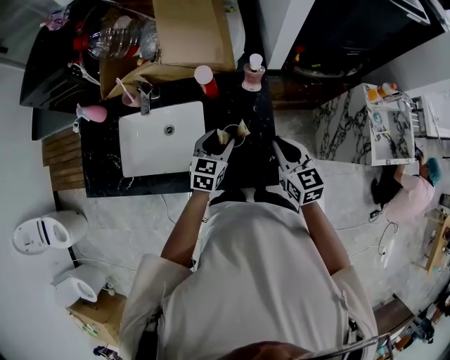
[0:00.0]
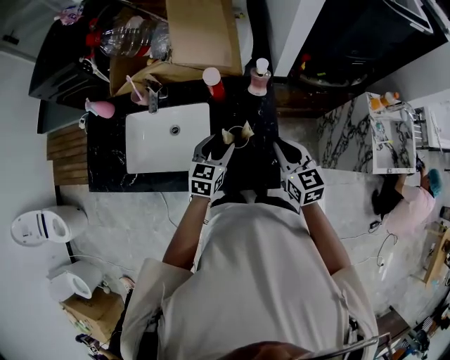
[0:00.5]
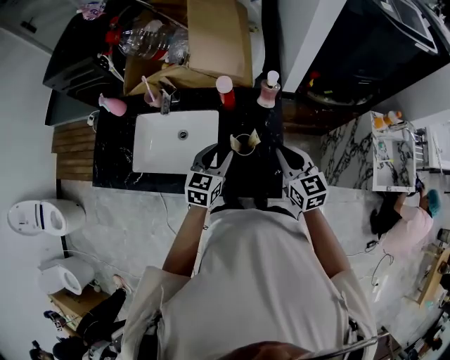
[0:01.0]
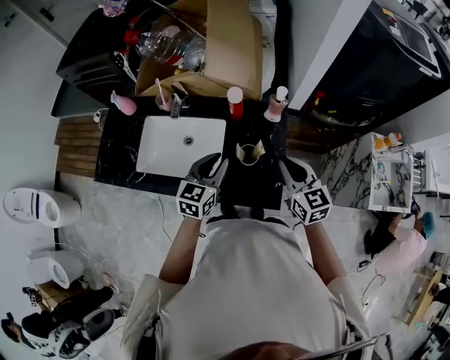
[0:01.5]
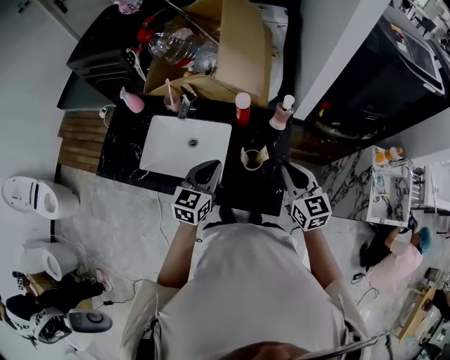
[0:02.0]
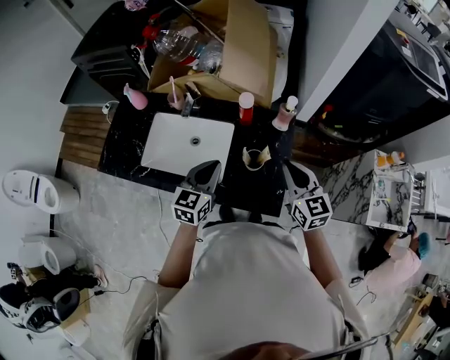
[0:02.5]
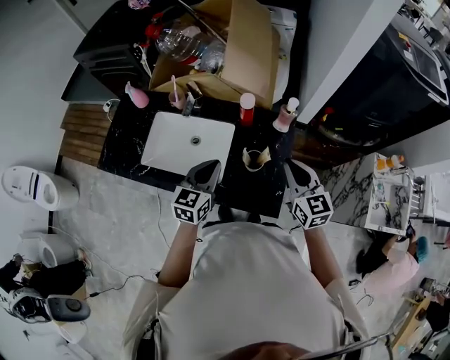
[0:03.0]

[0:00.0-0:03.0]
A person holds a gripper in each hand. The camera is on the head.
0:00.0 to 0:01.5: The right gripper moves upward, roughly 5 cm; the left gripper moves upward and to the left, roughly 15 cm, and closes.
0:01.5 to 0:03.0: The grippers stay close to where they were, moving slightly.

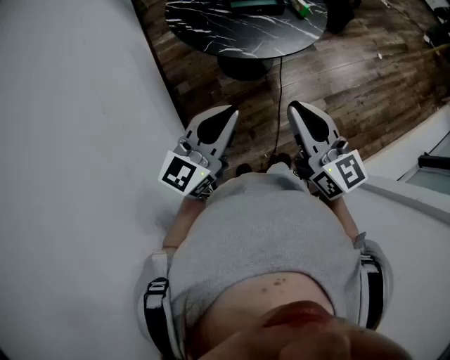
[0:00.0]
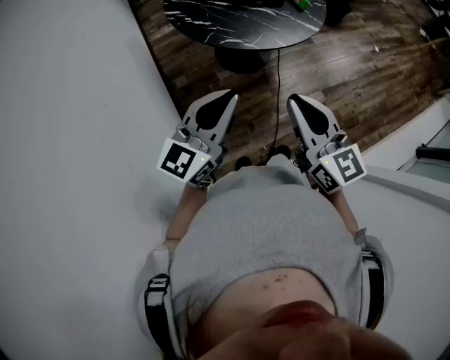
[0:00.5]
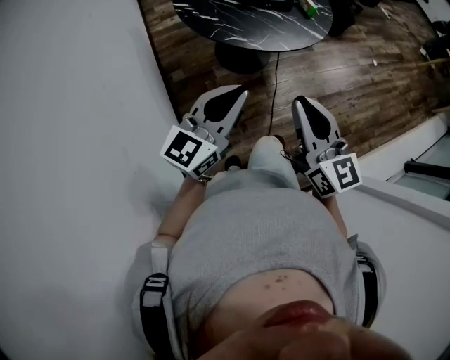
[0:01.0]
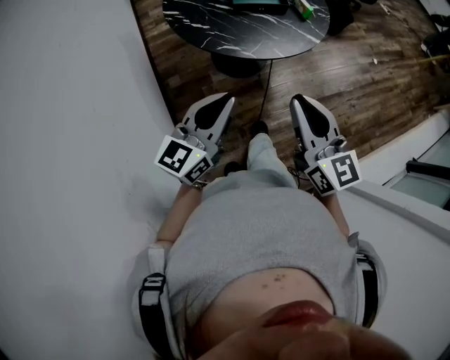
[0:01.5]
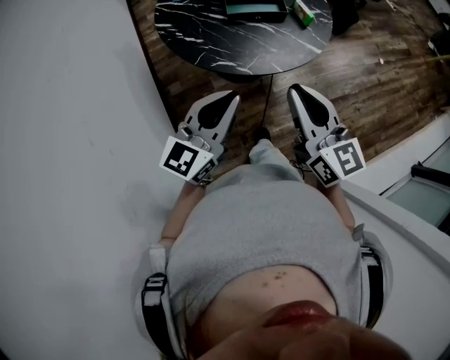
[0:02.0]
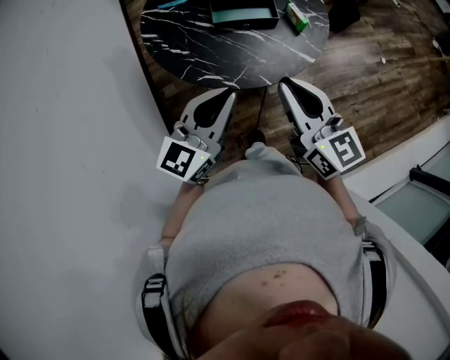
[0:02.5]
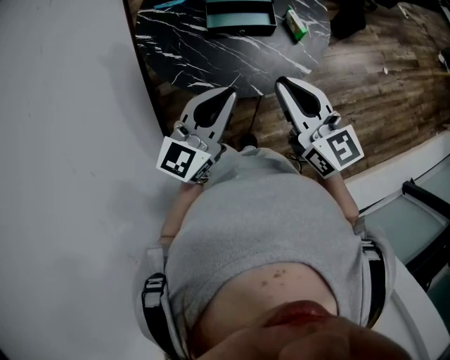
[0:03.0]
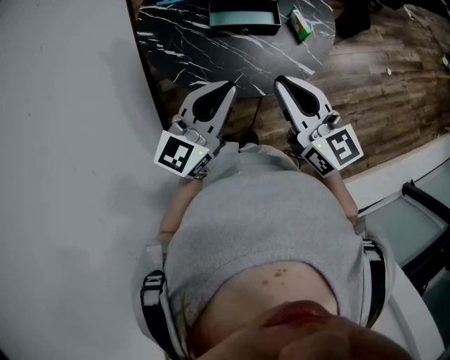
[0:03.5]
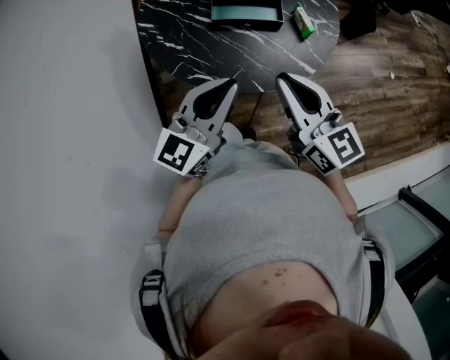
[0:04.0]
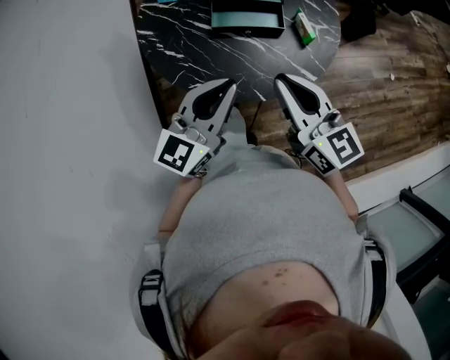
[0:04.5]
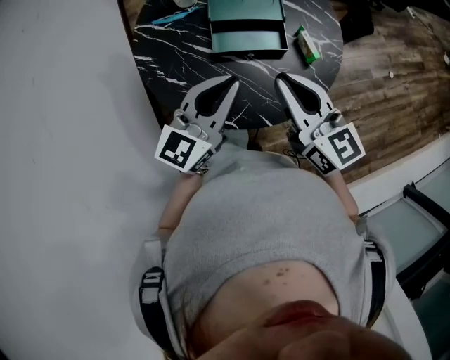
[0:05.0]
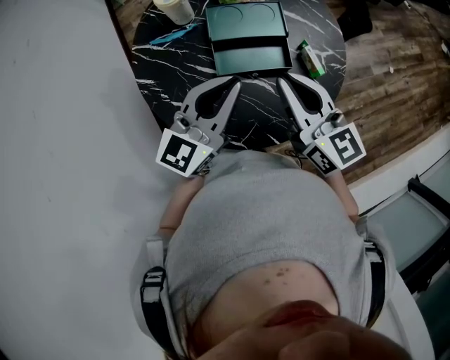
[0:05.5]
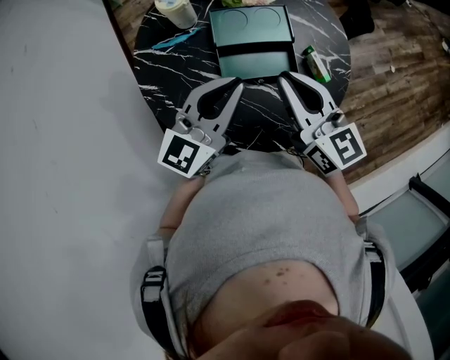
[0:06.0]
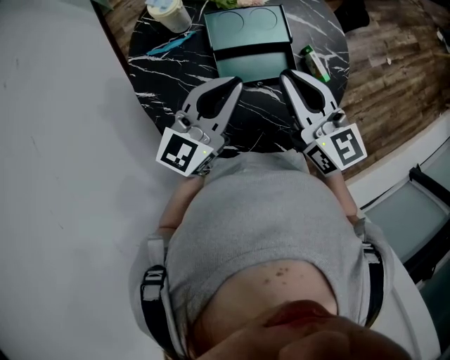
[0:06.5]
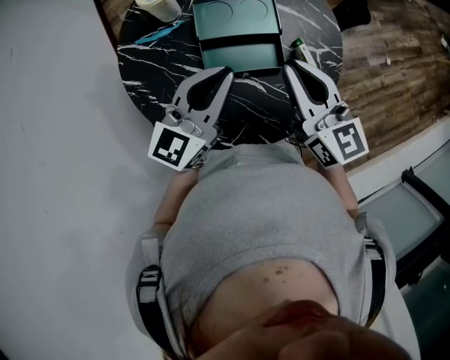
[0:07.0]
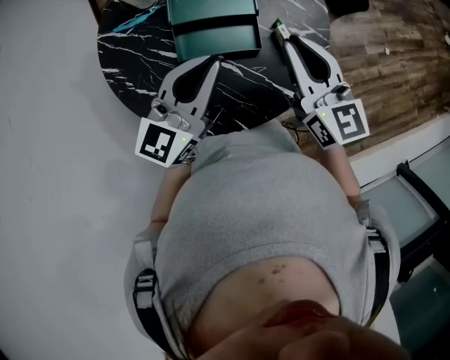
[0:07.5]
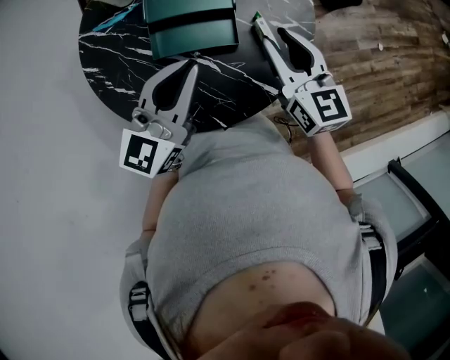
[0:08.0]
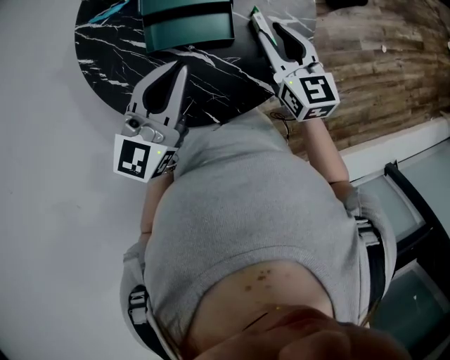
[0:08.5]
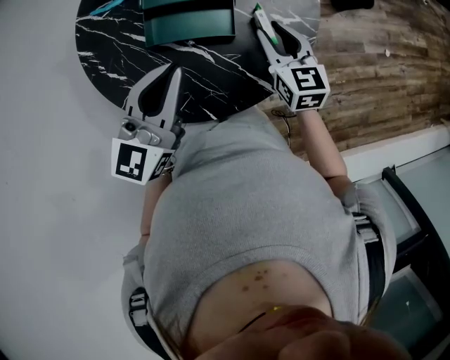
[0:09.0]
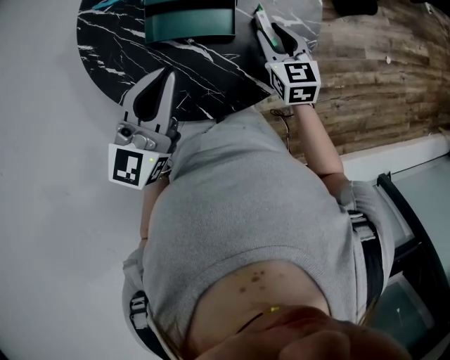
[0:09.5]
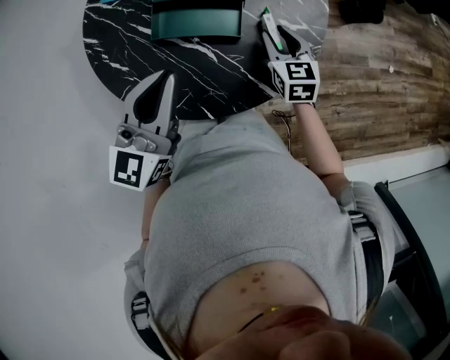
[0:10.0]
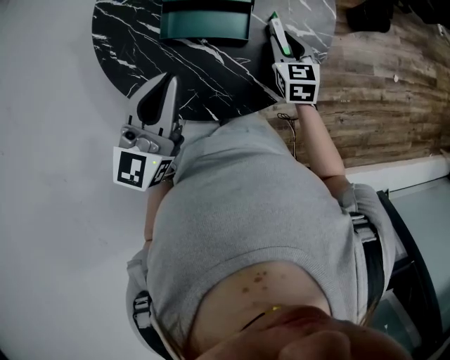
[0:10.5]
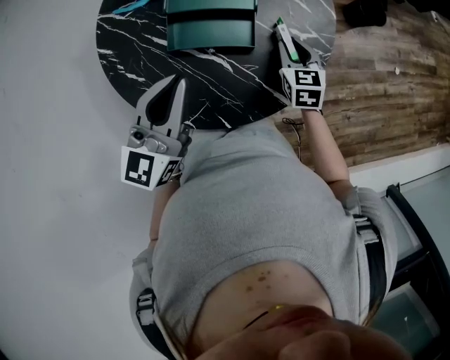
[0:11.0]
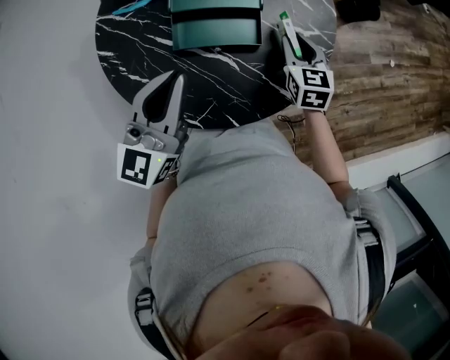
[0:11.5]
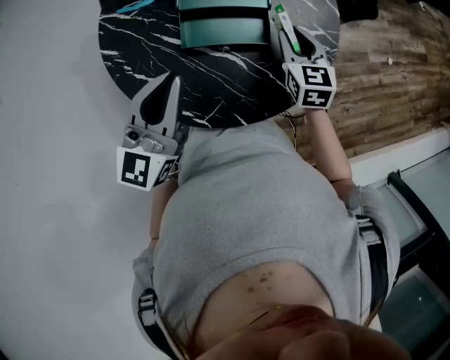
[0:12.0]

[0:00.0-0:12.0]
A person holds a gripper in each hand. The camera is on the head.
0:00.0 to 0:02.0: Both grippers move forward, about 15 cm.
0:02.0 to 0:04.0: Both grippers move forward and to the right, some 15 cm.
0:04.0 to 0:06.0: The two grippers go about 20 cm forward.
0:06.0 to 0:08.0: The right gripper shifts roughly 15 cm to the right and downward, and opens, while the left gripper shifts about 10 cm to the right.
0:08.0 to 0:10.0: The right gripper moves downward, about 15 cm.
0:10.0 to 0:12.0: The left gripper heads to the left, covering about 10 cm, while the right gripper moves upward, about 5 cm.

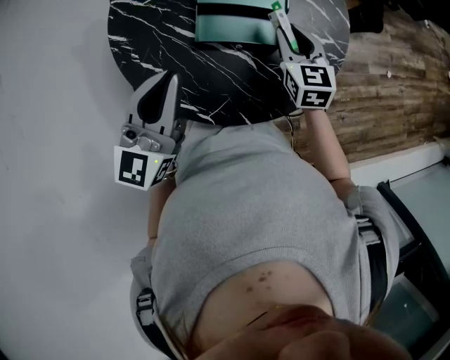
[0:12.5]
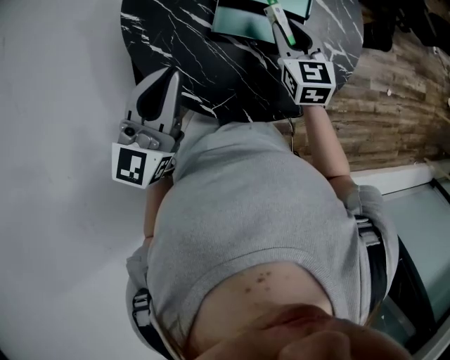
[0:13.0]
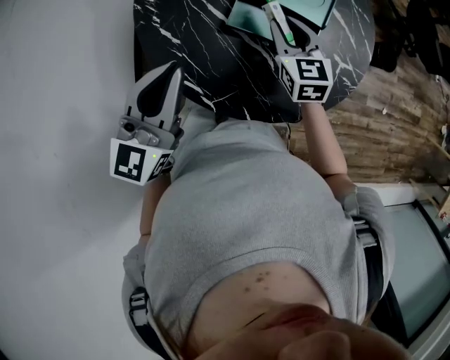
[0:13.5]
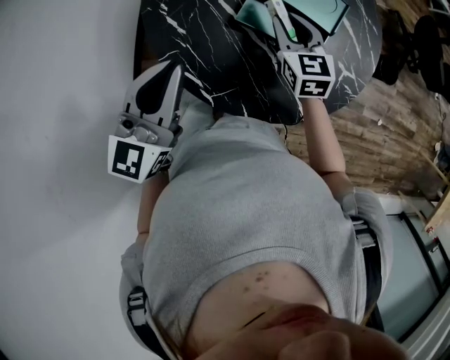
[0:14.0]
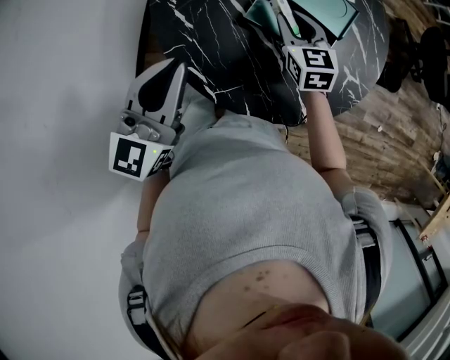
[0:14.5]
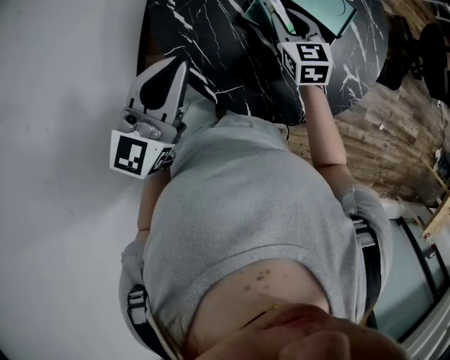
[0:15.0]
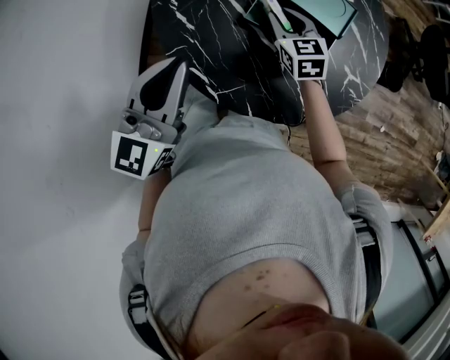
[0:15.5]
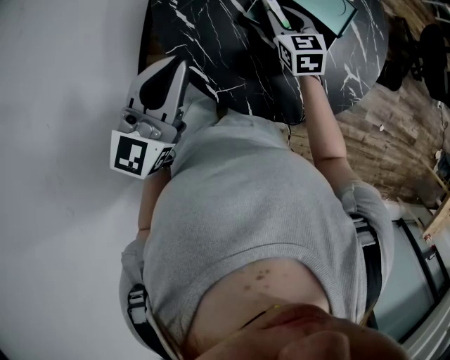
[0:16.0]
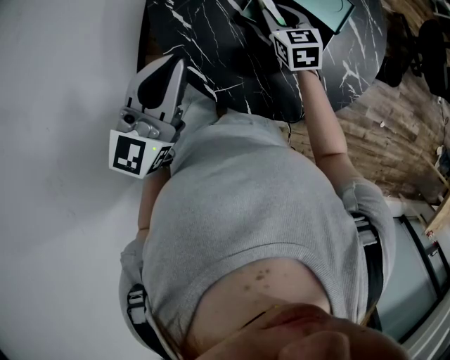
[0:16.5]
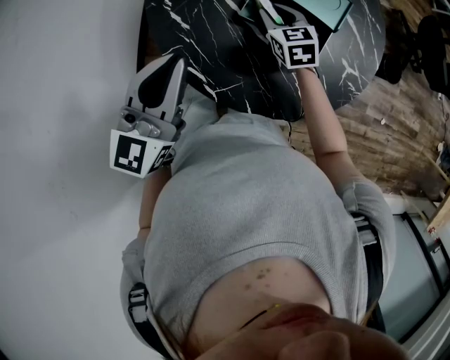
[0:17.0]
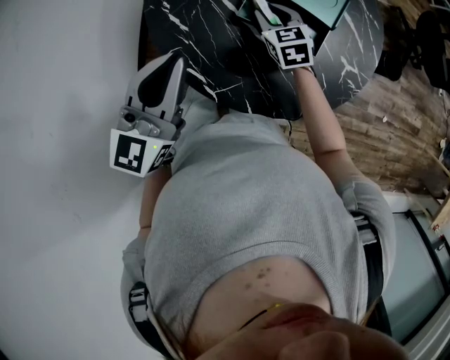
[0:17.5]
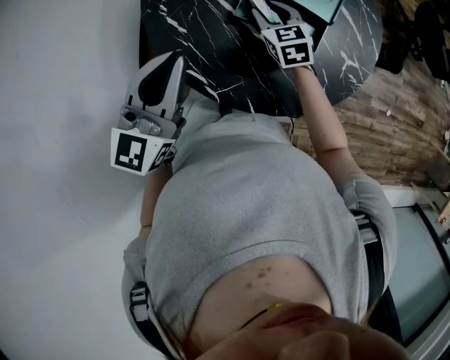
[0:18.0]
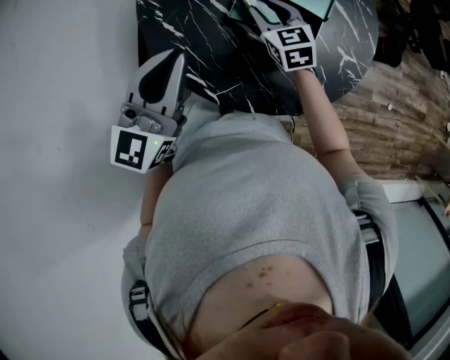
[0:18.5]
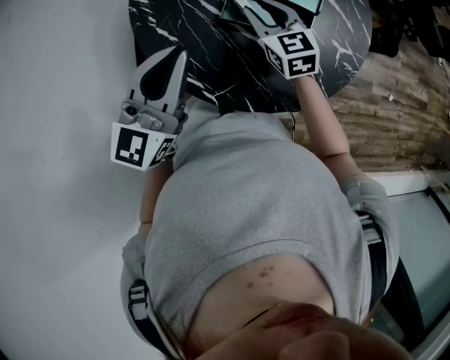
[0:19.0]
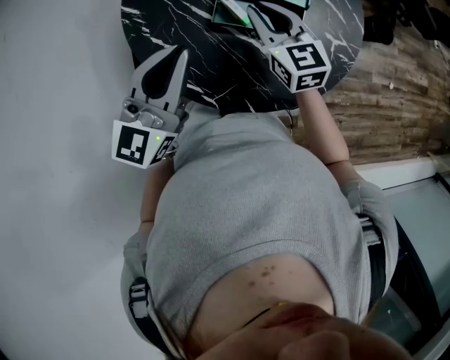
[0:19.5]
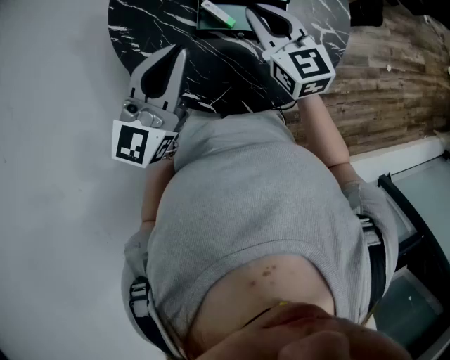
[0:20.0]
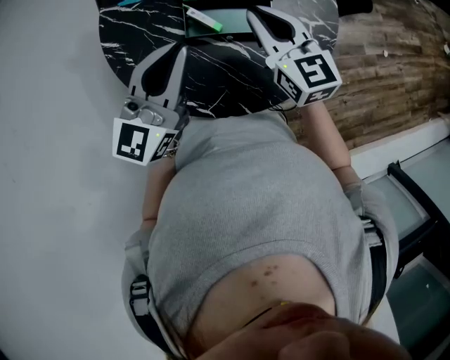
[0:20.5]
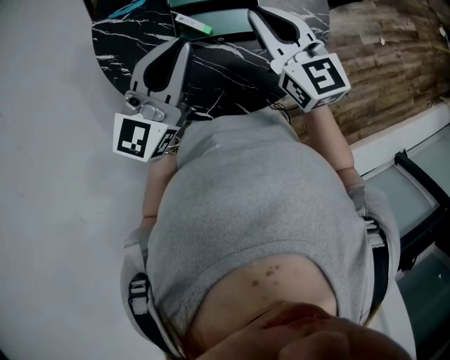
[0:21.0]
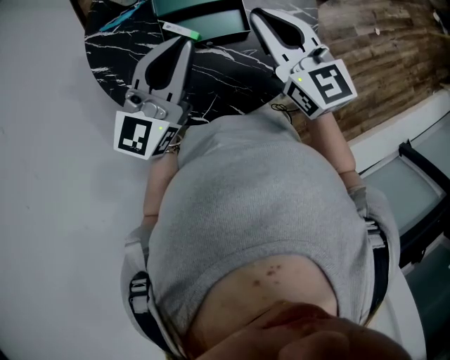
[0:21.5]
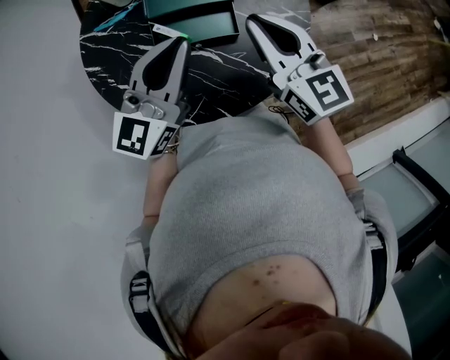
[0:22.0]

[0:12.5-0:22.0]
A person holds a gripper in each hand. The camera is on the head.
0:12.5 to 0:14.5: The left gripper travels to the left and backward by roughly 10 cm, and turns by roughly 20 degrees, while the right gripper travels to the left by some 15 cm, and rotates about 30 degrees.
0:14.5 to 0:18.0: The grippers stay close to where they were, moving slightly.
0:18.0 to 0:20.0: The left gripper moves to the right, approximately 5 cm. Meanwhile the right gripper travels upward and to the right by some 15 cm, swivels approximately 30 degrees, and closes.
0:20.0 to 0:22.0: The left gripper is displaced to the right by roughly 10 cm, while the right gripper moves to the right and upward, about 15 cm.

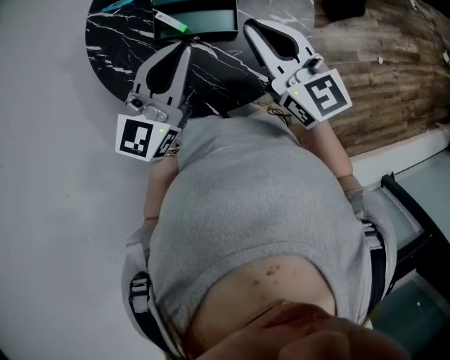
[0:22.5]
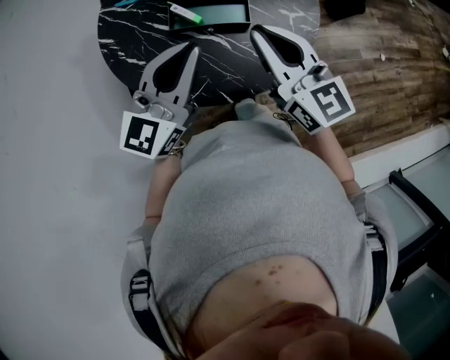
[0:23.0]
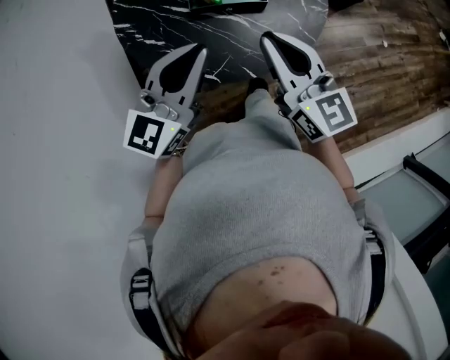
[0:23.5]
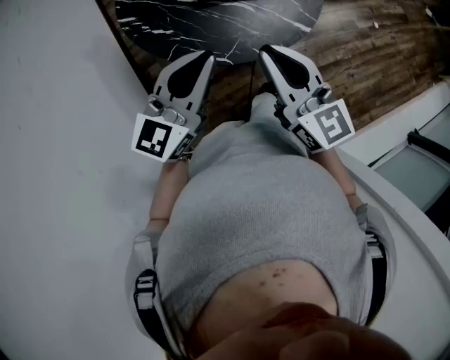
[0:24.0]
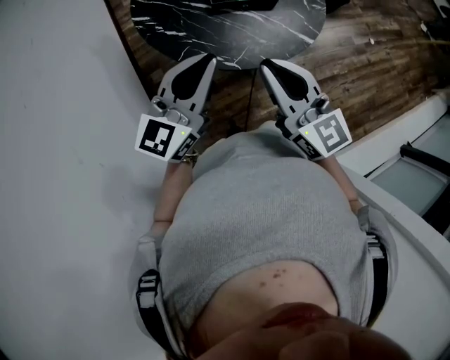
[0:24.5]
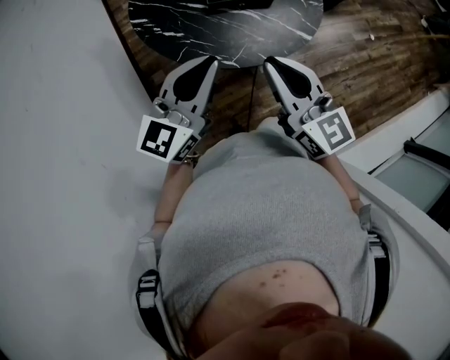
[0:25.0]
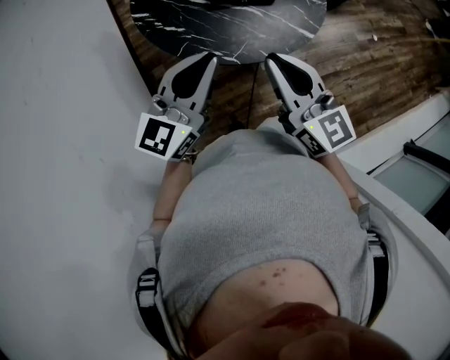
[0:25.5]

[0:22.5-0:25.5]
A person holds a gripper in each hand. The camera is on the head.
0:22.5 to 0:24.0: Both grippers travel together backward and to the left, about 25 cm.
0:24.0 to 0:25.5: The grippers stay close to where they were, moving slightly.
